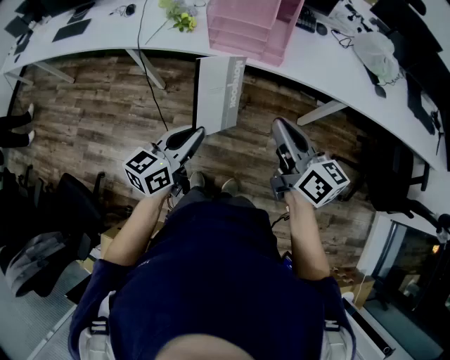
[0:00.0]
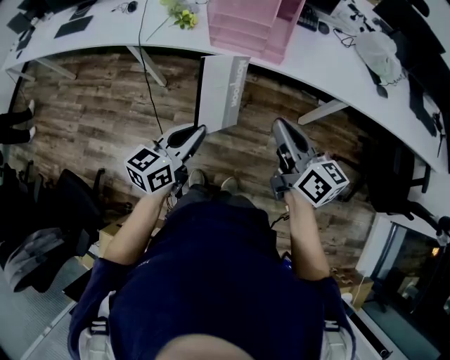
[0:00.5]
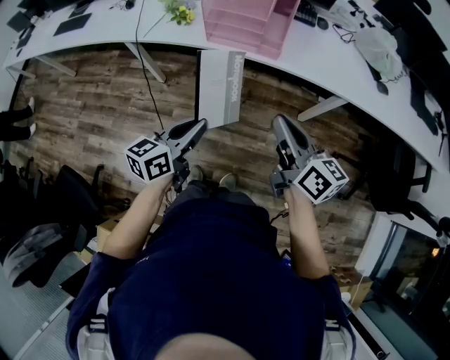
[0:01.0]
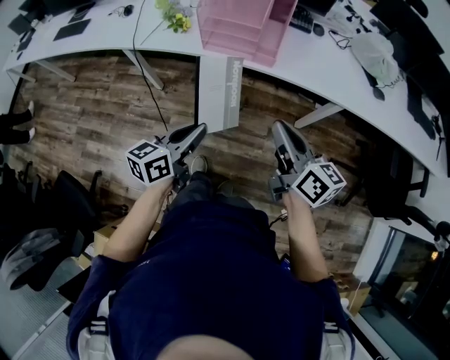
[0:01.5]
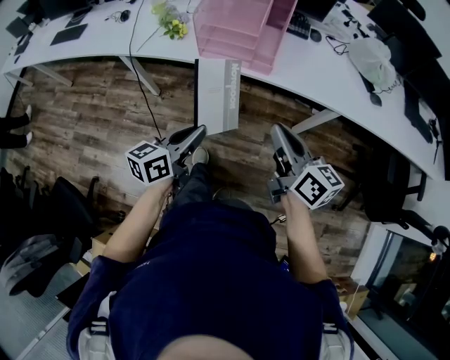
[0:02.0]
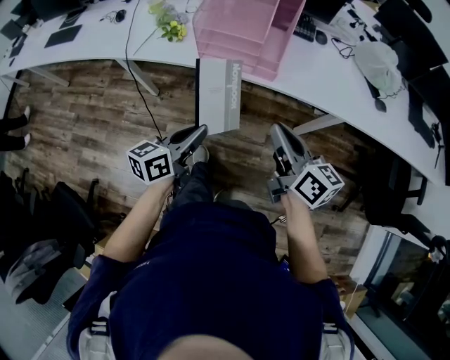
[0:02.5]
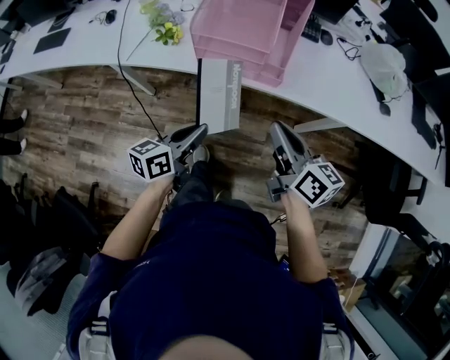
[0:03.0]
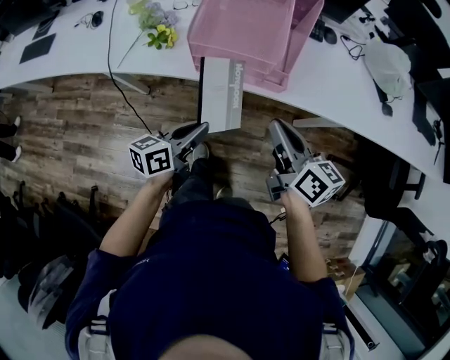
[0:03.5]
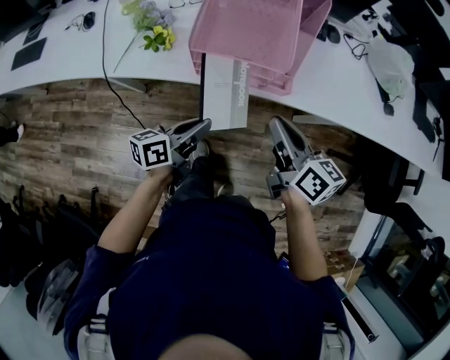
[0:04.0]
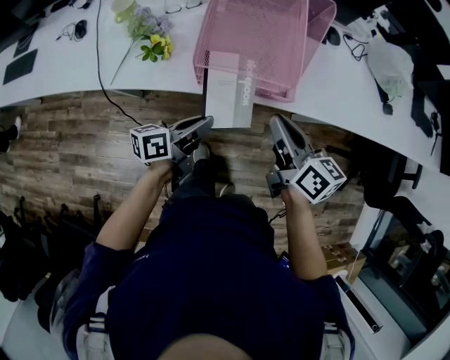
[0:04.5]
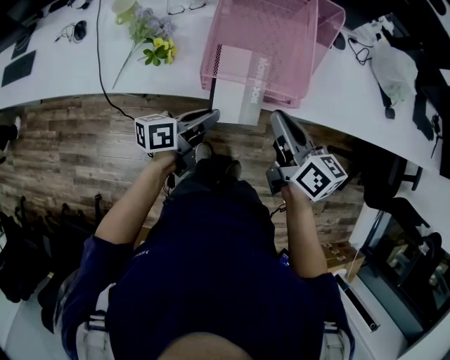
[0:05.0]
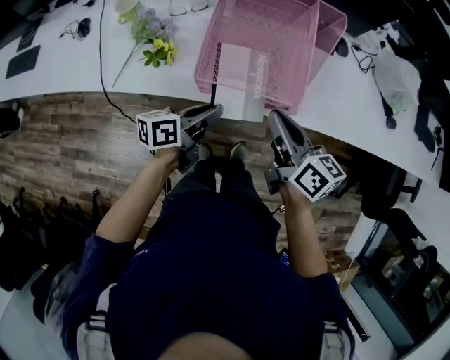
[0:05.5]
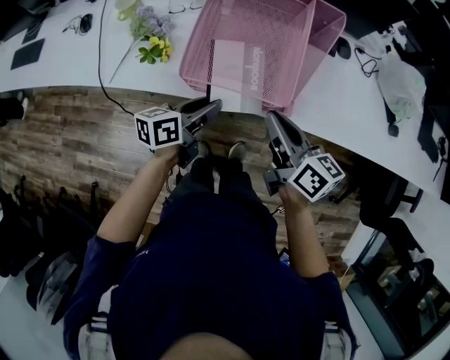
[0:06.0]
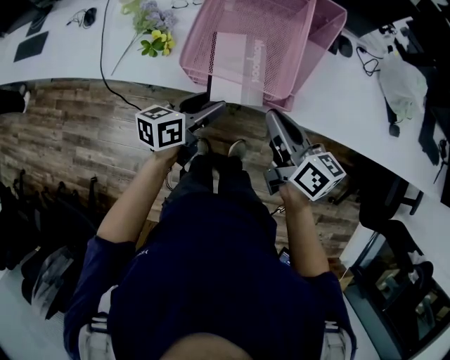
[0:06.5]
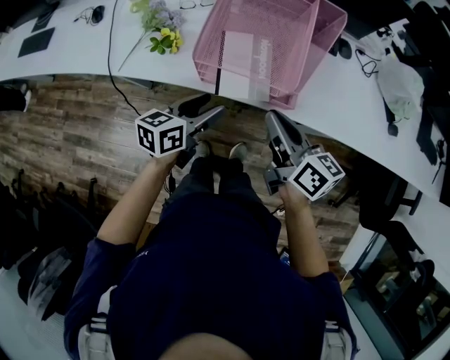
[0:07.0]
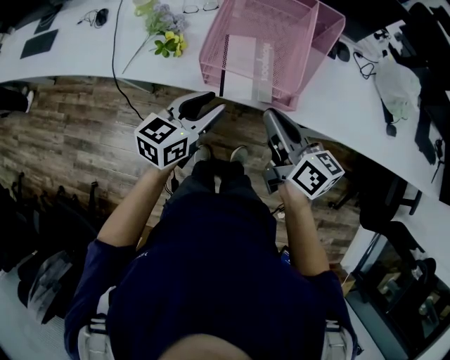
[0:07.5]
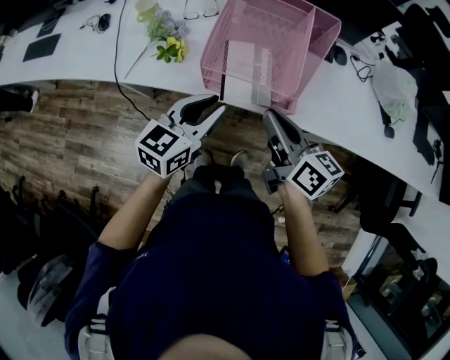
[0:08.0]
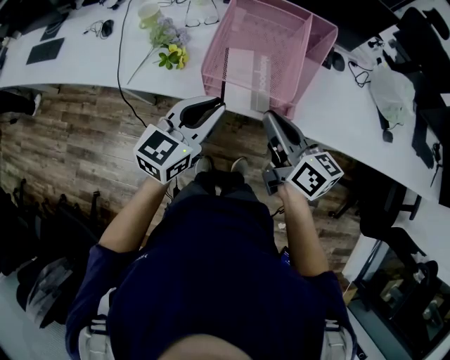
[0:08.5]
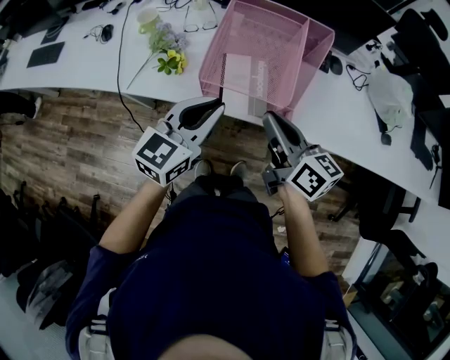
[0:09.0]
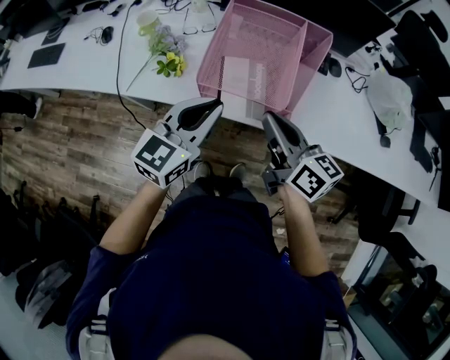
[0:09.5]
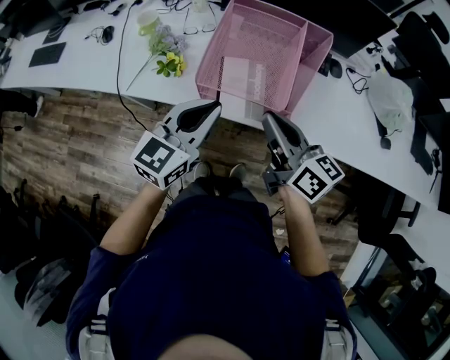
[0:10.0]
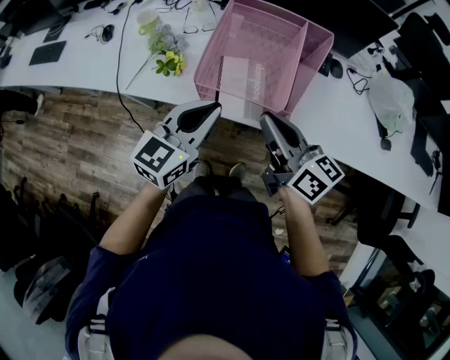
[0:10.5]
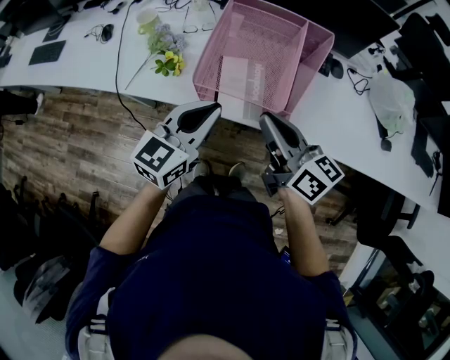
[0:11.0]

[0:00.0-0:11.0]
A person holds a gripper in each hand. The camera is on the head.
0:00.0 to 0:02.0: The left gripper moves roughly 5 cm; the right gripper shifts by approximately 5 cm.
0:02.0 to 0:03.5: The right gripper heads forward and to the left, covering approximately 20 cm. The left gripper moves forward and downward, roughly 20 cm.
0:03.5 to 0:05.5: The right gripper moves forward and to the left, about 15 cm. Meanwhile the left gripper moves forward, about 15 cm.
0:05.5 to 0:07.5: The left gripper travels upward by approximately 5 cm, turns by about 40 degrees, and opens its fingers.
0:07.5 to 0:09.0: The left gripper travels upward by roughly 10 cm, and closes its fingers.
0:09.0 to 0:11.0: The grippers make only small movements.

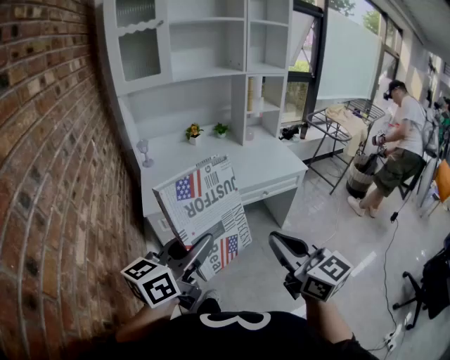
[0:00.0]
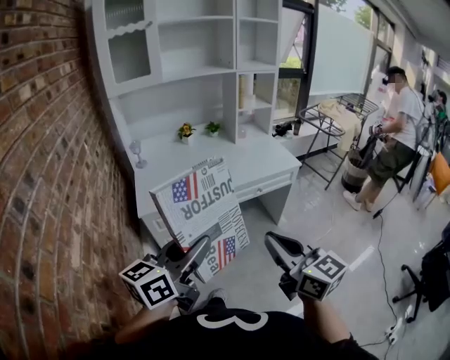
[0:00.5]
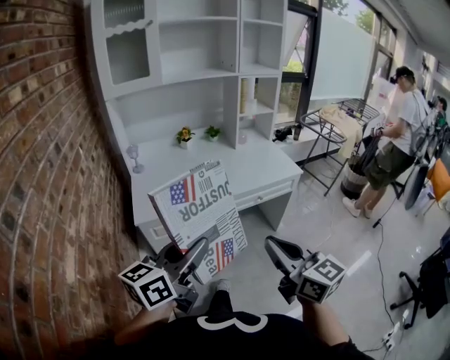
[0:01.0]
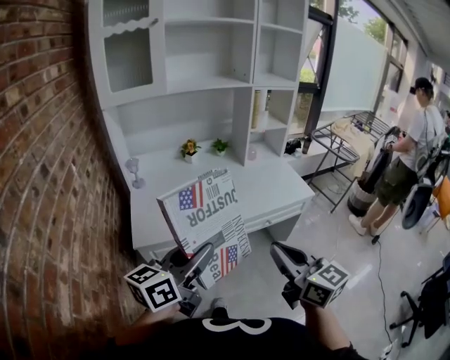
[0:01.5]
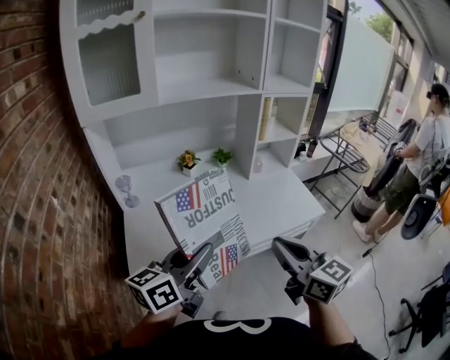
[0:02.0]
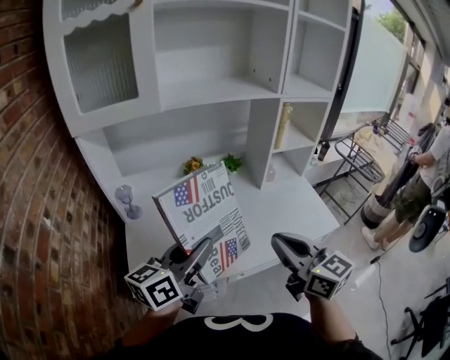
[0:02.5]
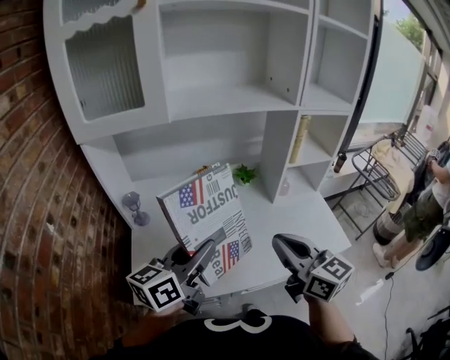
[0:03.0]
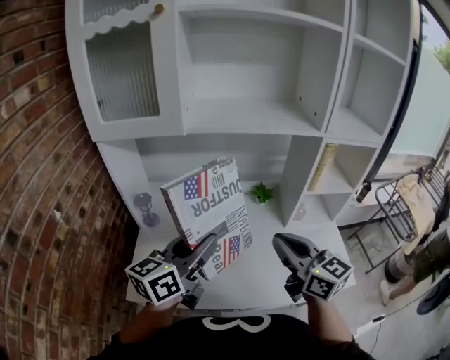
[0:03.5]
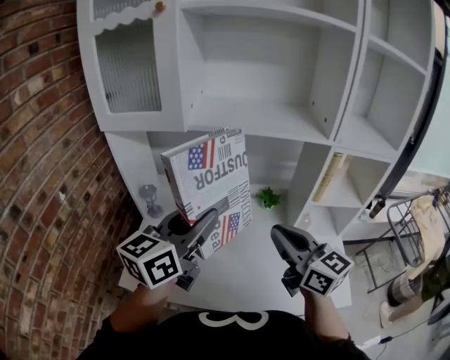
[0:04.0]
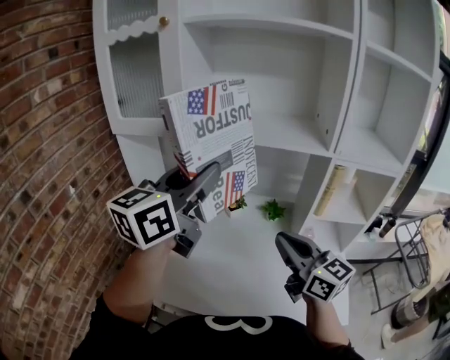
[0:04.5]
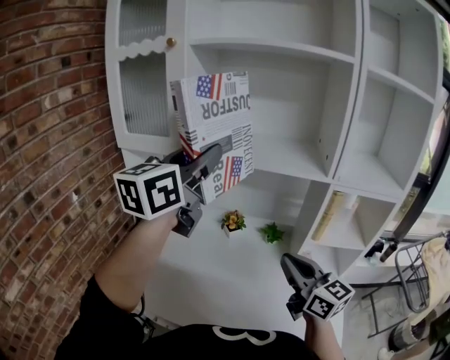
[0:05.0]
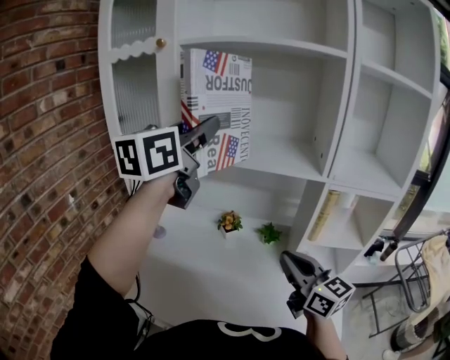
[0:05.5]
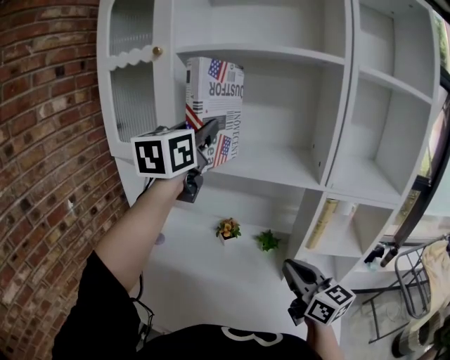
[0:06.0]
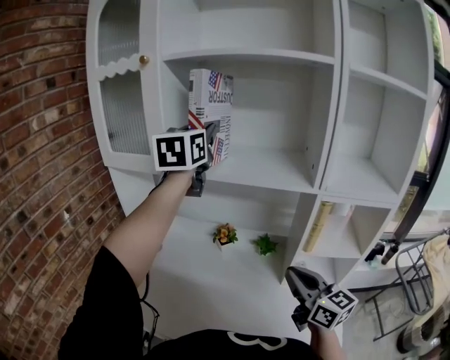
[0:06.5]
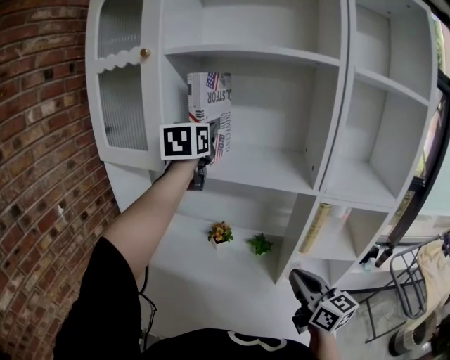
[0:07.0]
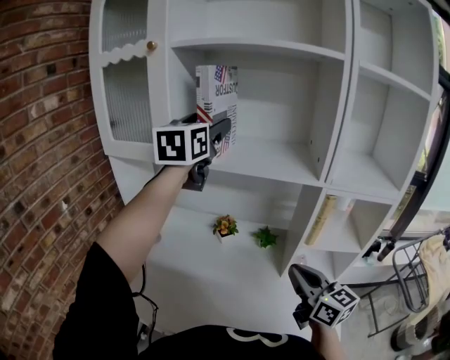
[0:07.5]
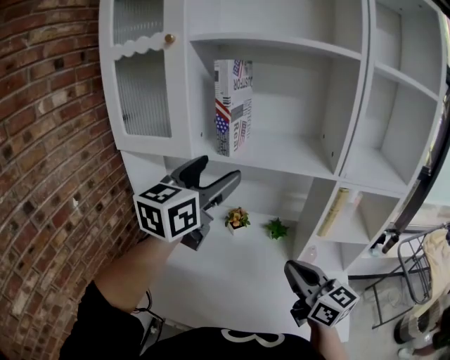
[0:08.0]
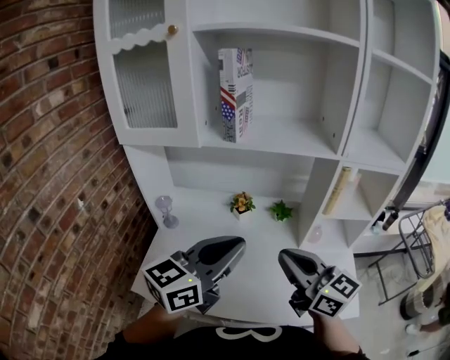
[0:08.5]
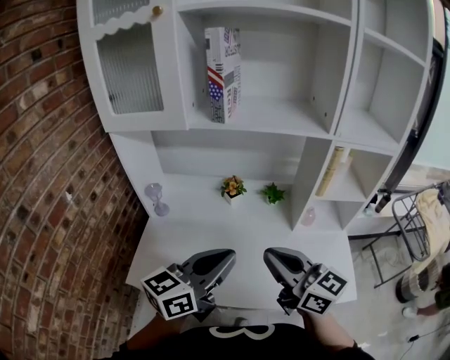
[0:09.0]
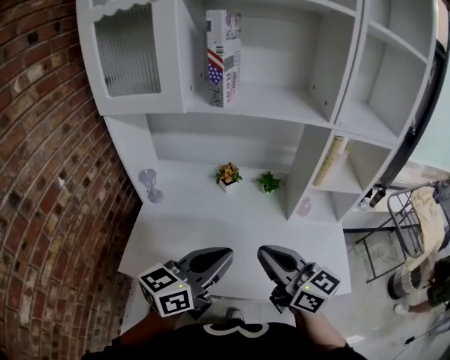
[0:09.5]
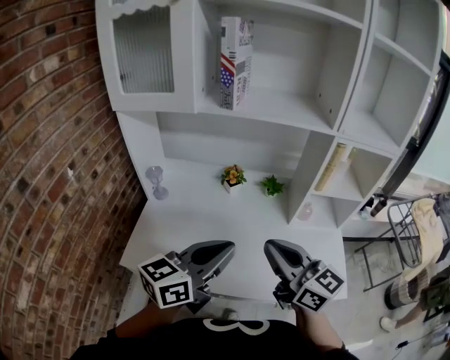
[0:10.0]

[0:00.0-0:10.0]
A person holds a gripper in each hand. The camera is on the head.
0:00.0 to 0:02.0: Both grippers move forward, some 30 cm.
0:02.0 to 0:04.0: The right gripper changes place by some 30 cm, and swivels about 30 degrees. Meanwhile the left gripper ends up about 25 cm from where it was, and changes its angle by some 30 degrees.
0:04.0 to 0:06.0: The left gripper moves upward and forward, approximately 25 cm, and rotates about 30 degrees; the right gripper goes roughly 10 cm to the right.
0:06.0 to 0:08.0: The left gripper is displaced downward and backward by about 10 cm, and opens, while the right gripper shifts by roughly 5 cm.
0:08.0 to 0:10.0: The right gripper shifts approximately 10 cm backward and to the left. The left gripper is displaced backward and downward by roughly 25 cm, swivels about 30 degrees, and closes up.

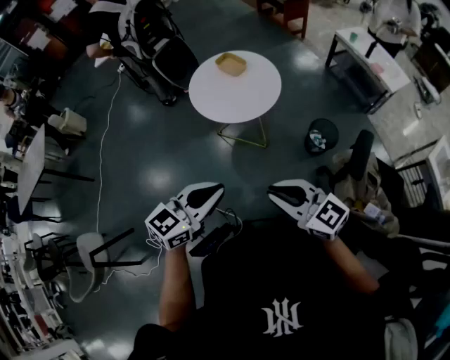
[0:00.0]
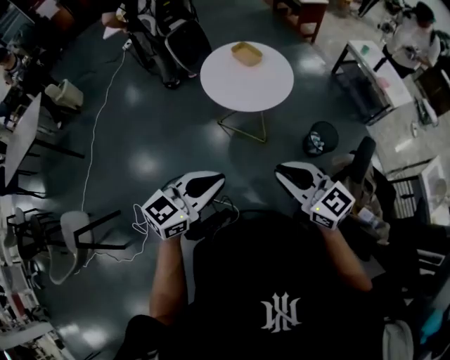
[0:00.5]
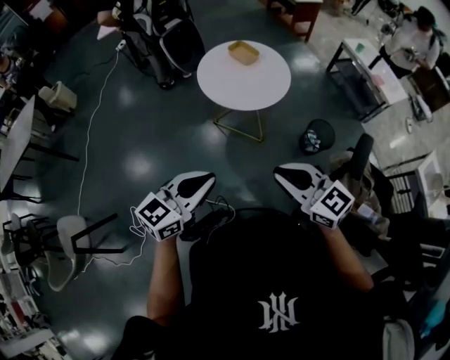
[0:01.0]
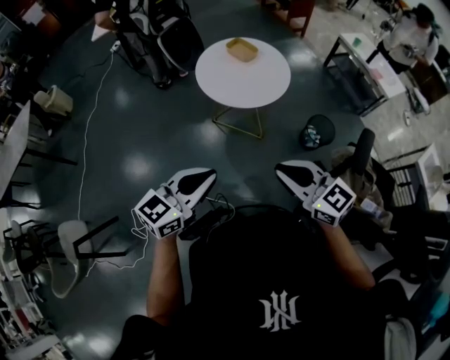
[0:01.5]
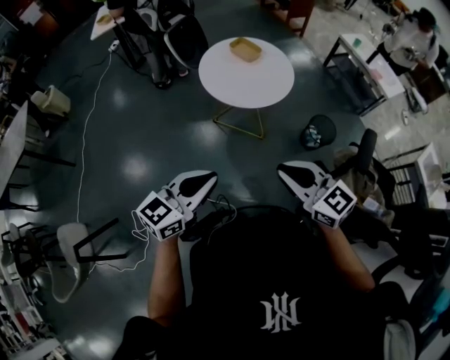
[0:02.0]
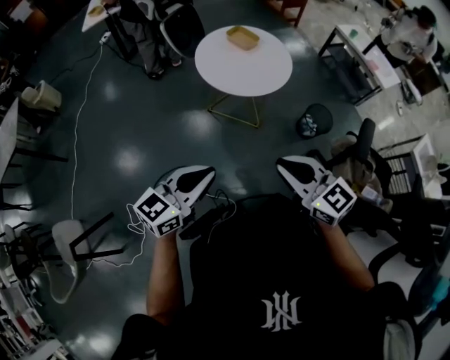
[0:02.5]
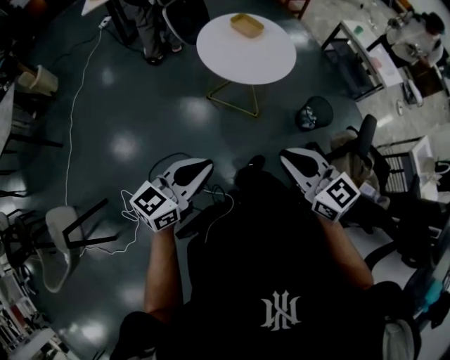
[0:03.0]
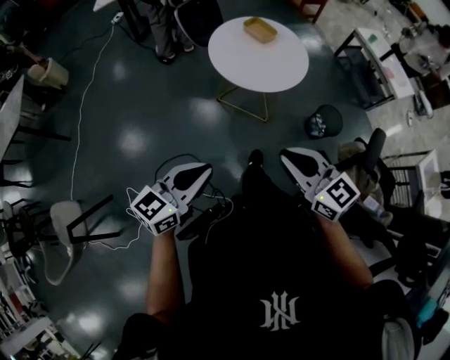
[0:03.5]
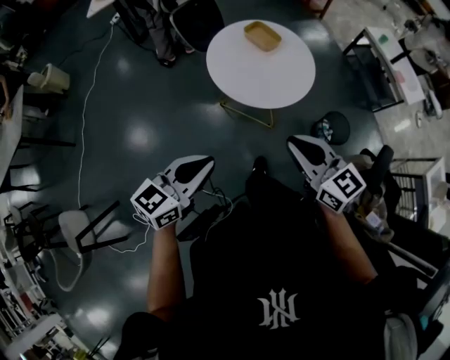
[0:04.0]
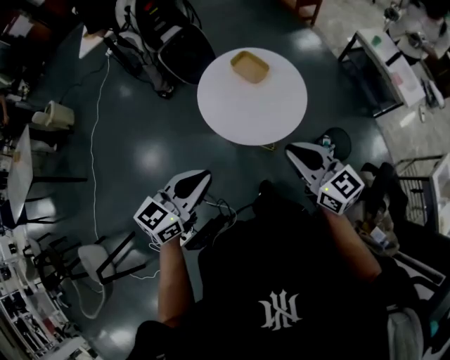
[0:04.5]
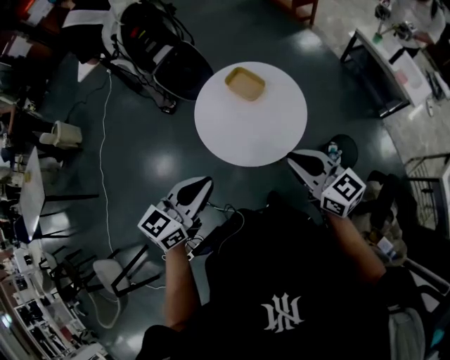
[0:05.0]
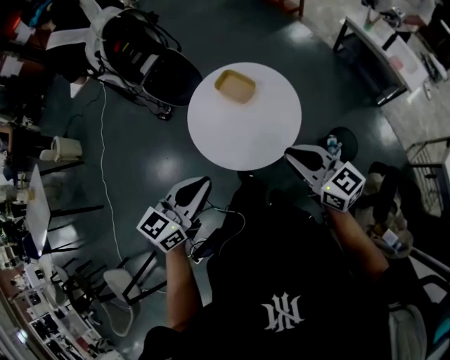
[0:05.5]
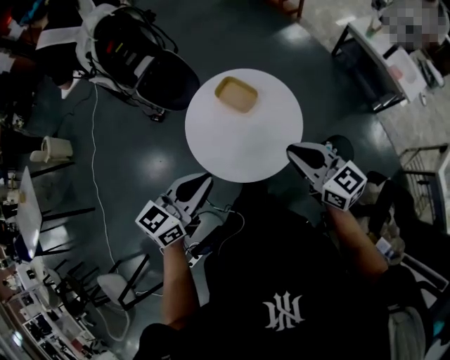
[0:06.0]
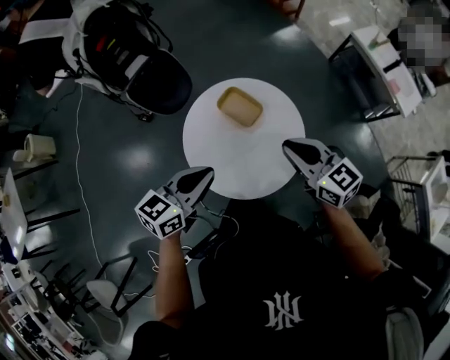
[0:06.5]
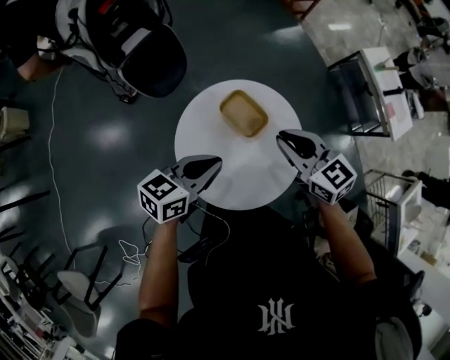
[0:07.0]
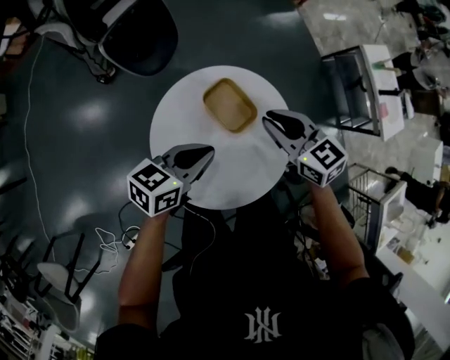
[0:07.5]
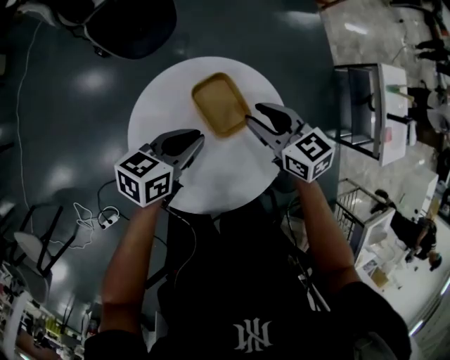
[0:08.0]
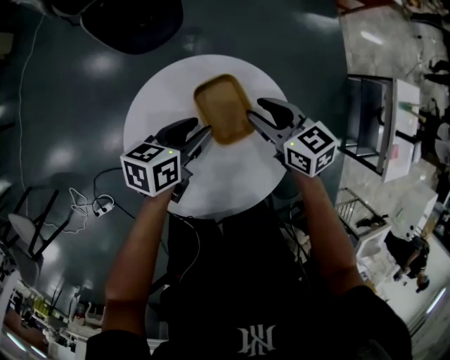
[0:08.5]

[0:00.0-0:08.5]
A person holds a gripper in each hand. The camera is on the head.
0:00.0 to 0:02.0: The two grippers go roughly 10 cm to the left.
0:02.0 to 0:04.0: The grippers both shift forward by approximately 15 cm.
0:04.0 to 0:06.5: The two grippers go about 35 cm forward.
0:06.5 to 0:08.5: The grippers both shift downward and forward by about 30 cm. The left gripper swivels some 40 degrees, and opens up. The right gripper swivels approximately 30 degrees, and opens its fingers.
